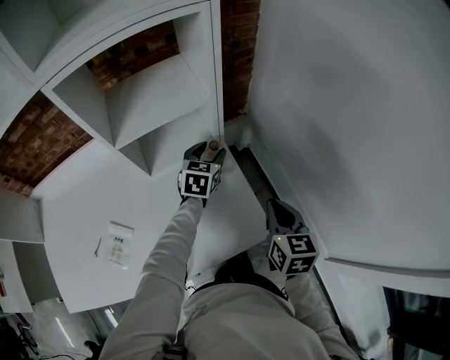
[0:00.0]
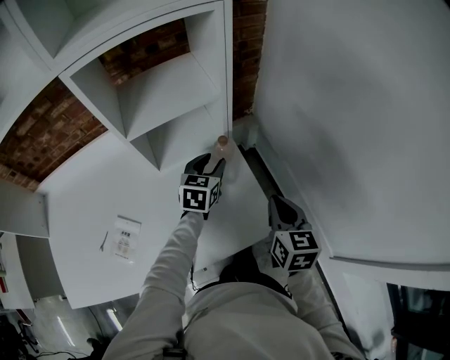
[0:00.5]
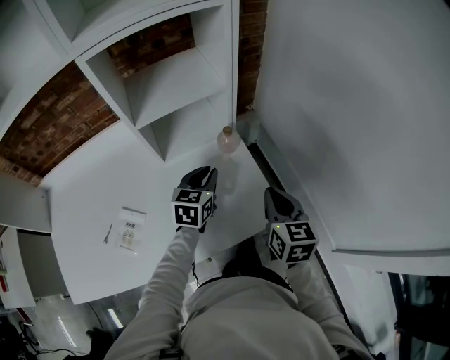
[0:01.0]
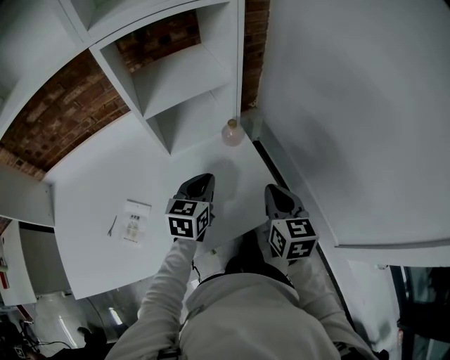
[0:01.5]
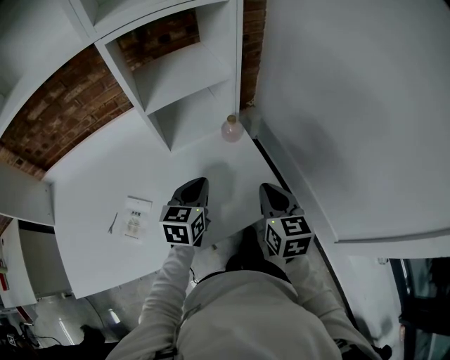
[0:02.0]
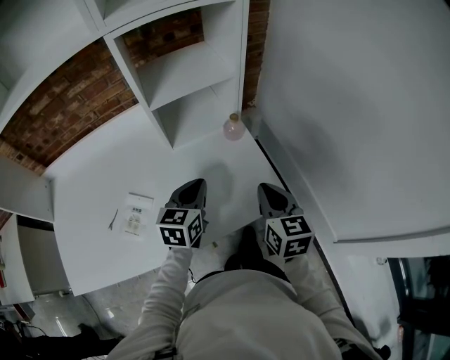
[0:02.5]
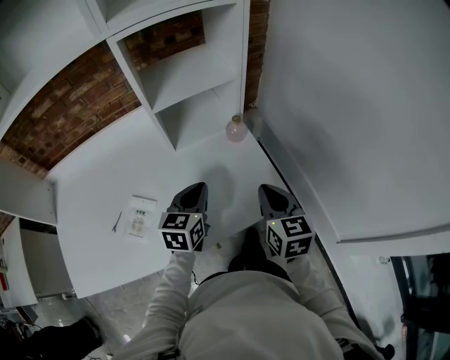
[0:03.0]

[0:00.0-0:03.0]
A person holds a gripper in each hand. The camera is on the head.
0:00.0 to 0:01.5: The left gripper moves backward, some 20 cm, and closes up. Meanwhile the right gripper travels backward and to the left by roughly 10 cm.
0:01.5 to 0:03.0: The left gripper heads backward, covering some 5 cm.

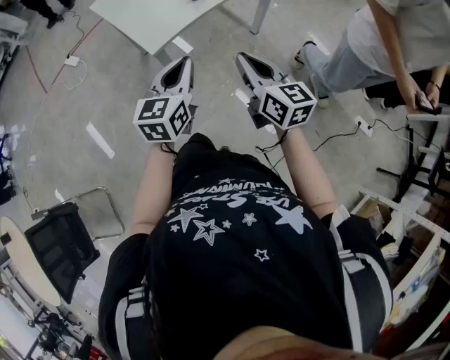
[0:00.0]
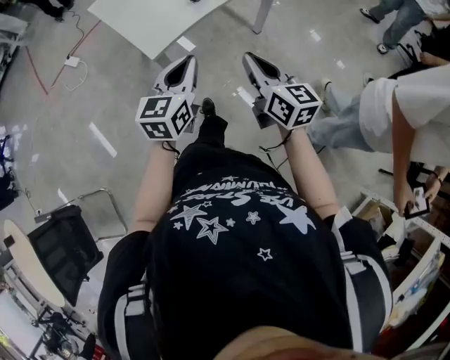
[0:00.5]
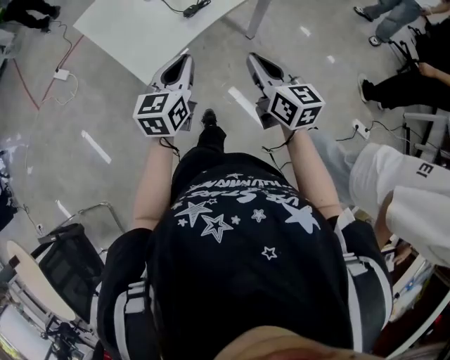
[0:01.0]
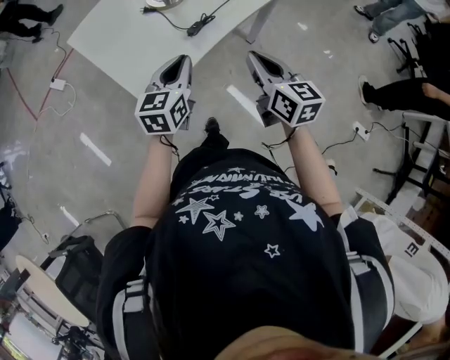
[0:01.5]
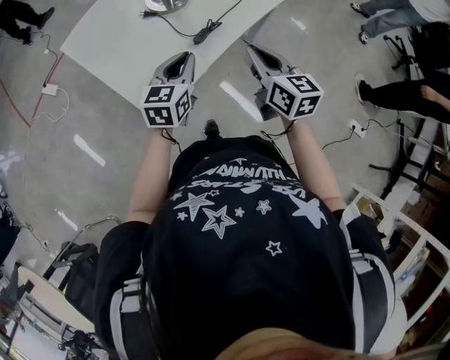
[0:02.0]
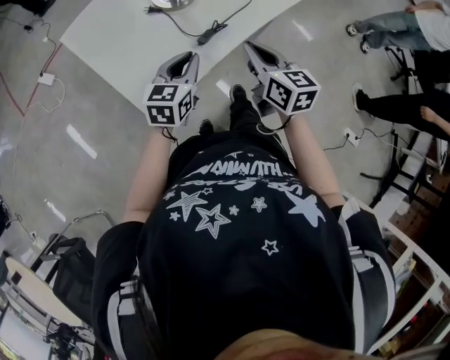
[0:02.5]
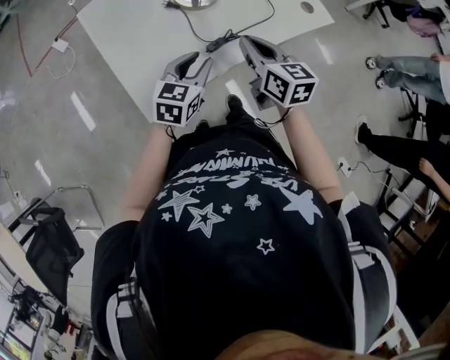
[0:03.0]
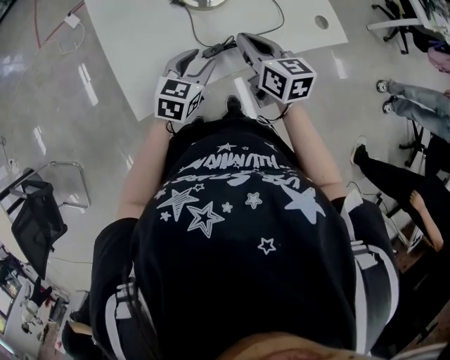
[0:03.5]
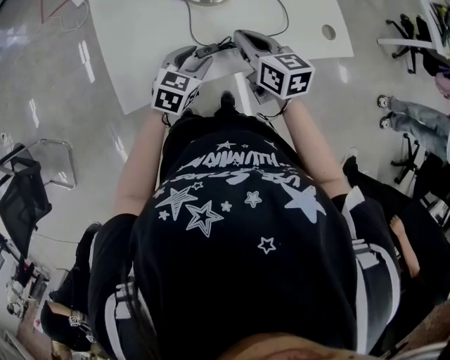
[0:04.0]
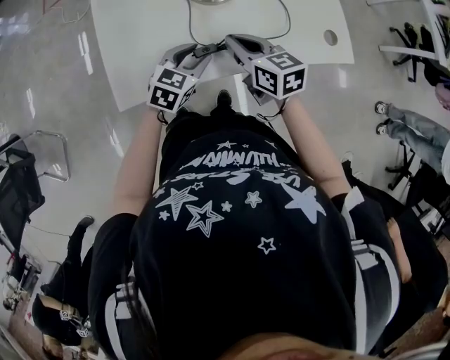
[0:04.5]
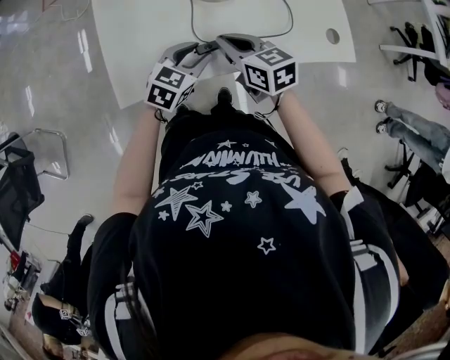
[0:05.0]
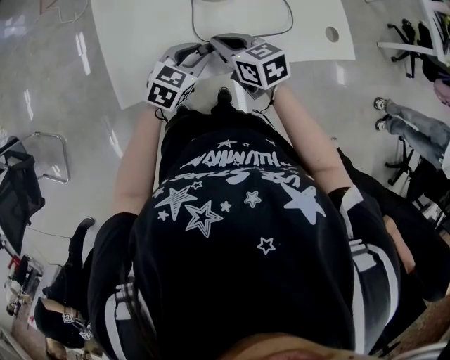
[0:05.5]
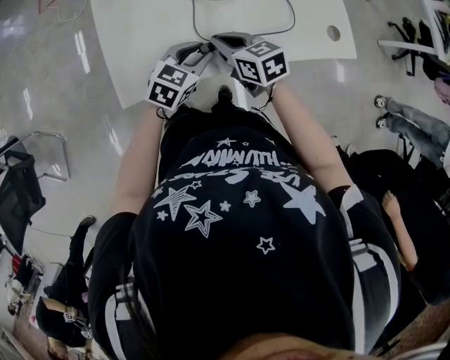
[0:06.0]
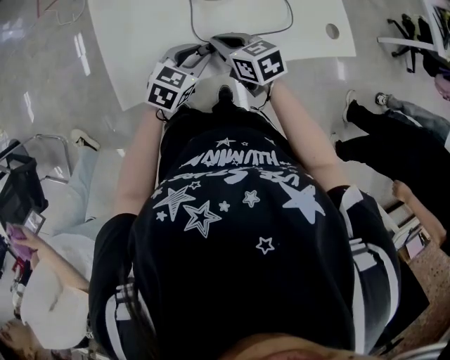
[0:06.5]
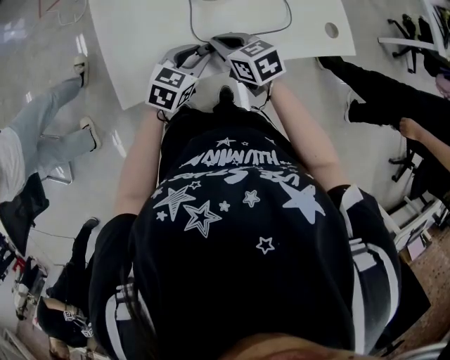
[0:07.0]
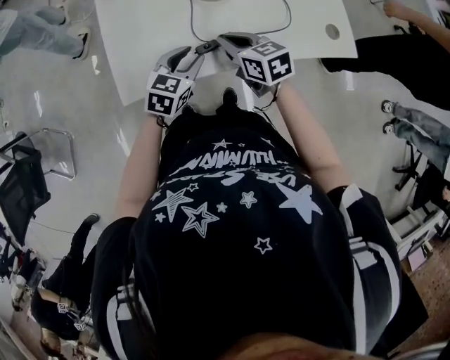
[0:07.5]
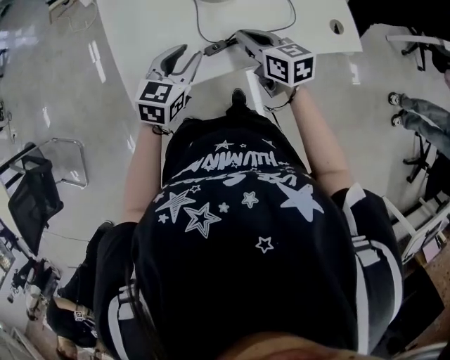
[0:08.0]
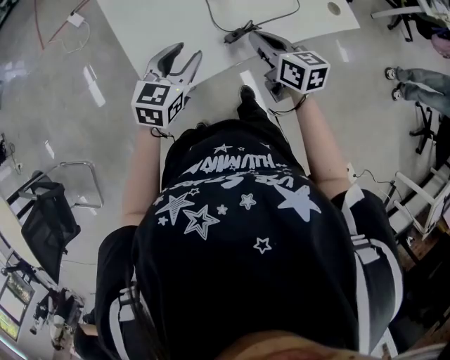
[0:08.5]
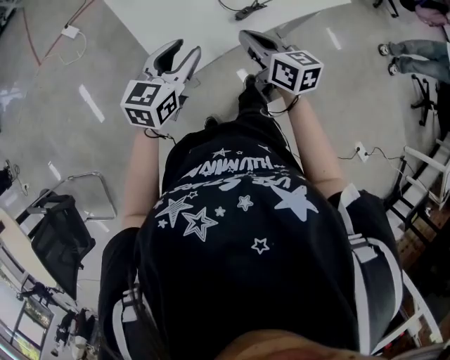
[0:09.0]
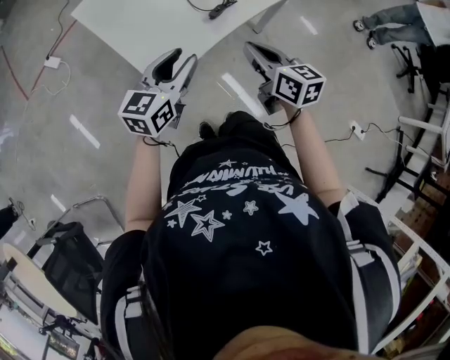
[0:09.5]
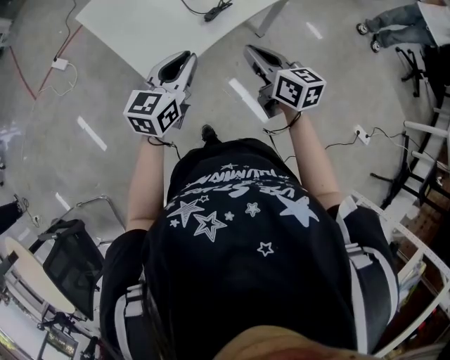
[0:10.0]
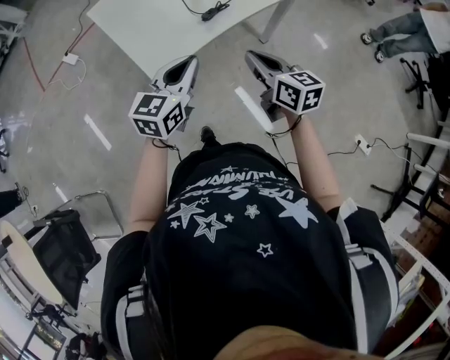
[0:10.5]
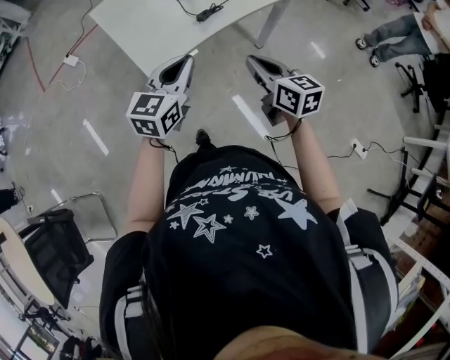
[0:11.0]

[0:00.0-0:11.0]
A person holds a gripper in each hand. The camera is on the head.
0:00.0 to 0:02.0: Both grippers travel together forward, about 30 cm.
0:02.0 to 0:03.5: The right gripper is displaced forward by about 15 cm, and swivels some 30 degrees. Meanwhile the left gripper heads to the right, forward and downward, covering about 10 cm, and opens its fingers.
0:03.5 to 0:05.5: The right gripper goes about 10 cm downward and to the left, and turns by approximately 30 degrees, while the left gripper ends up some 5 cm from where it was.
0:05.5 to 0:07.5: The grippers make only small movements.
0:07.5 to 0:09.0: The left gripper heads to the left, upward and backward, covering some 25 cm, and turns by approximately 20 degrees, while the right gripper goes about 20 cm backward, to the left and upward, and swivels some 40 degrees.
0:09.0 to 0:11.0: The left gripper travels backward, to the right and upward by approximately 15 cm, and closes up, while the right gripper goes approximately 20 cm backward and to the right.

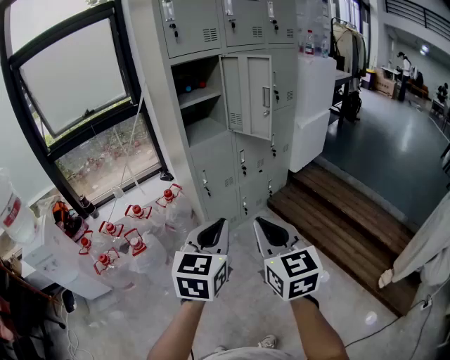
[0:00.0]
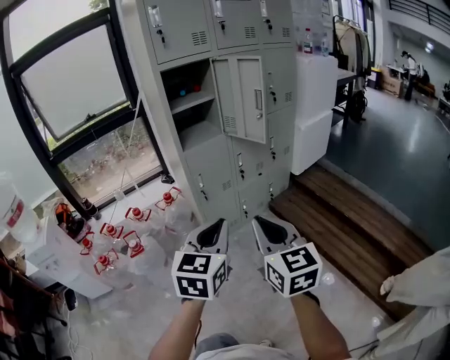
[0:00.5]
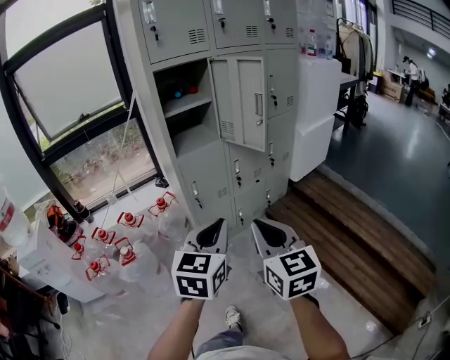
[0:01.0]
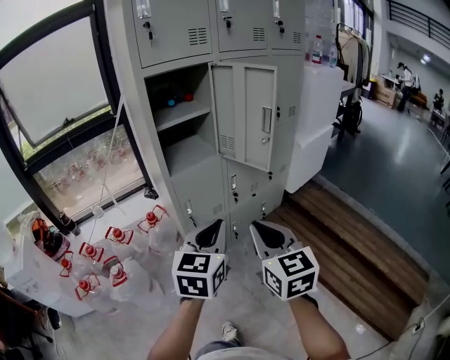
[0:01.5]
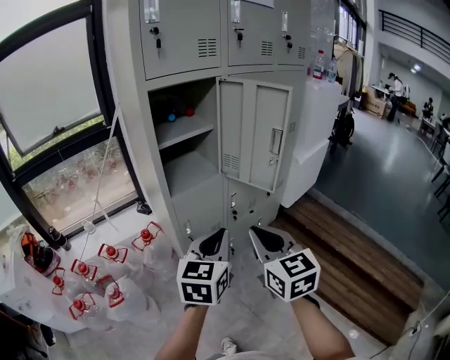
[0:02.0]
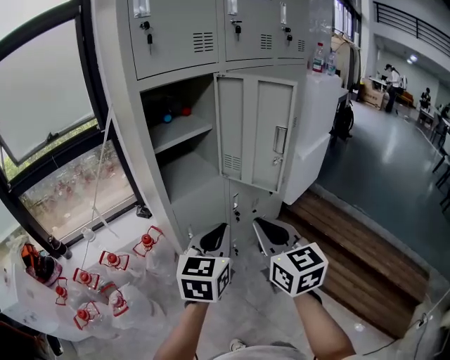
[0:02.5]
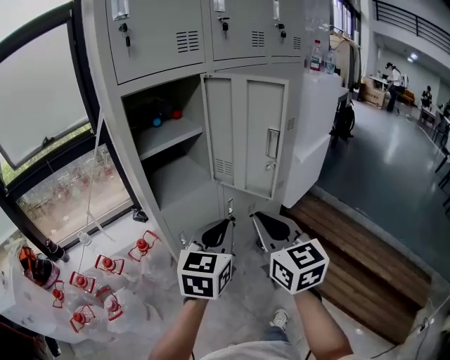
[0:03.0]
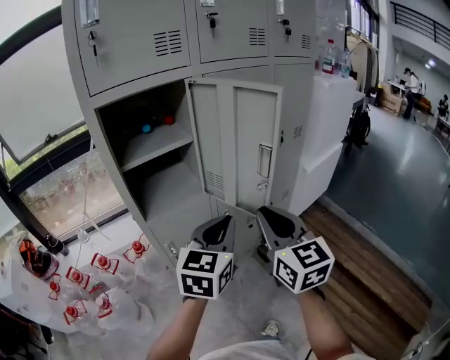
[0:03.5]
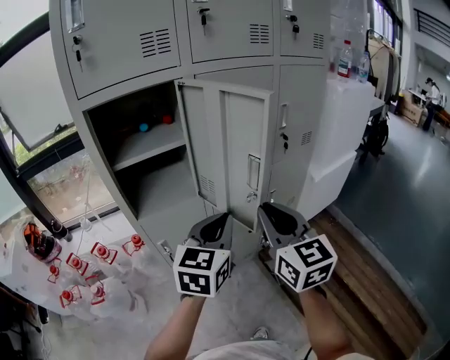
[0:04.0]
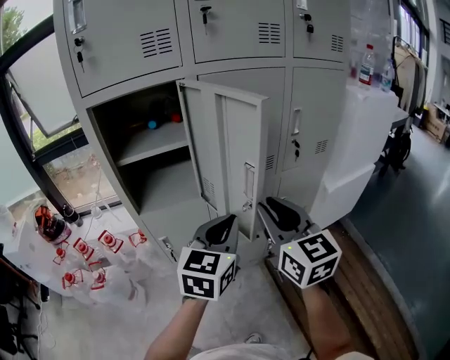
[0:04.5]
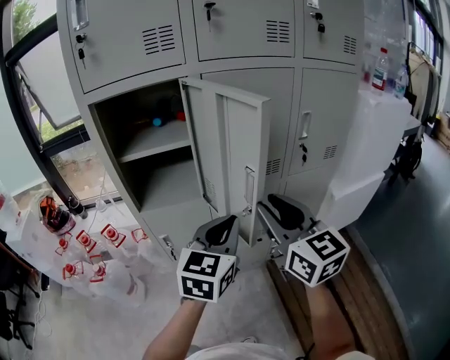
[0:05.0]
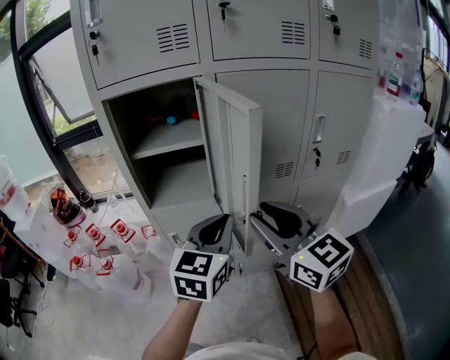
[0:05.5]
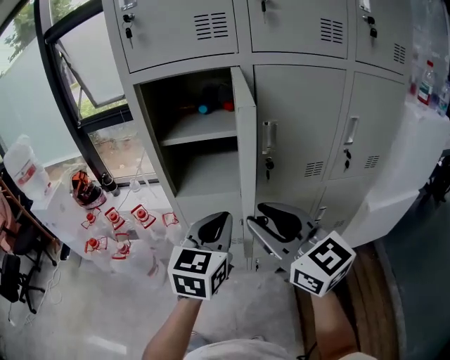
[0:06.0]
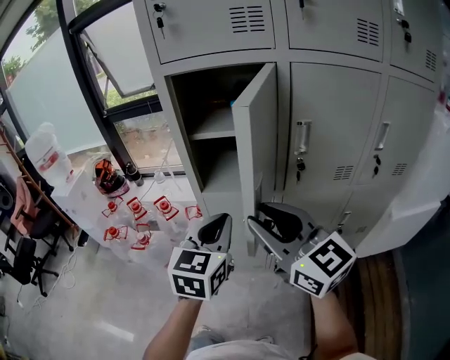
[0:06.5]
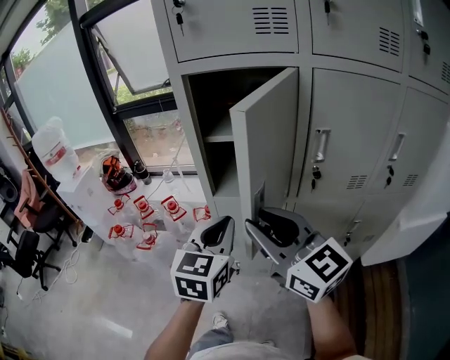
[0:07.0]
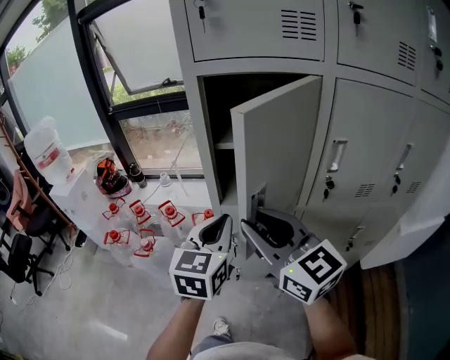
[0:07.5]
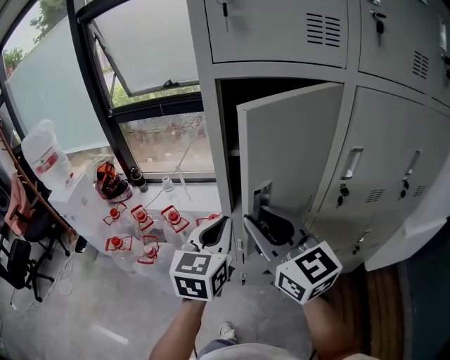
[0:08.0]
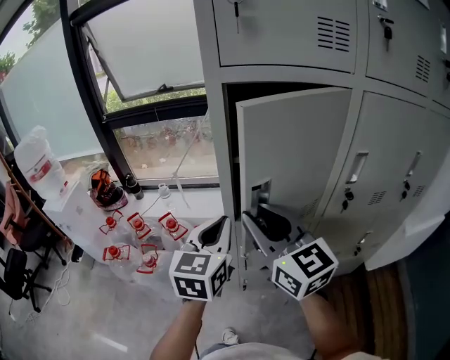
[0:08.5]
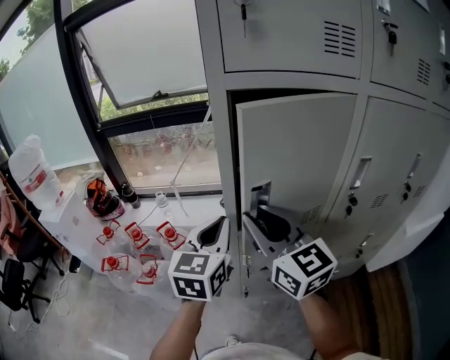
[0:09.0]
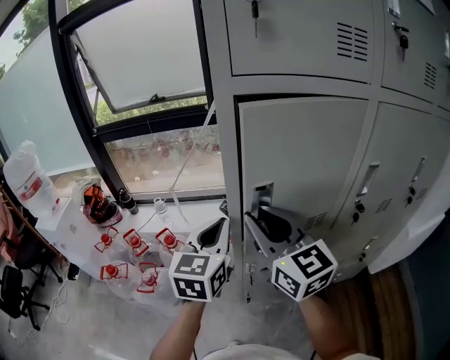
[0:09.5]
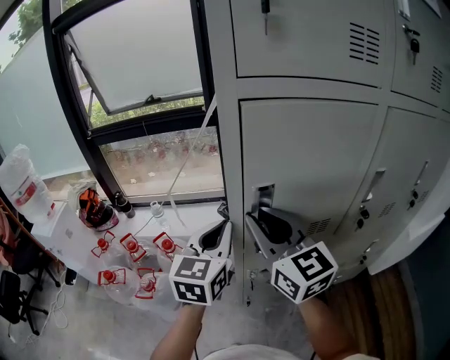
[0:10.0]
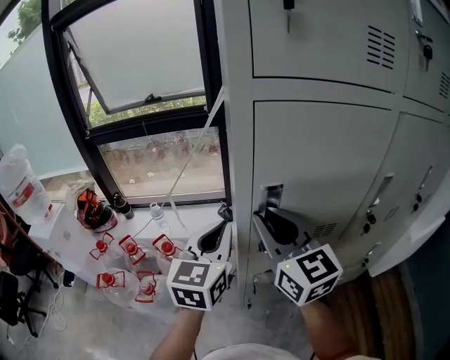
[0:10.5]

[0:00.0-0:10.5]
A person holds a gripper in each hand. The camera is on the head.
0:00.0 to 0:02.0: Both grippers travel together forward, about 30 cm.
0:02.0 to 0:04.0: Both grippers move forward and to the right, about 25 cm.
0:04.0 to 0:06.5: The right gripper ends up about 15 cm from where it was, rotates roughly 50 degrees, and opens up; the left gripper changes place by about 10 cm, and turns by roughly 30 degrees.
0:06.5 to 0:08.5: Both grippers travel together forward and to the left, about 20 cm.
0:08.5 to 0:10.5: Both grippers move forward, about 10 cm.

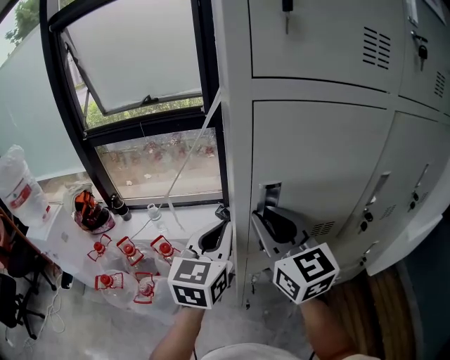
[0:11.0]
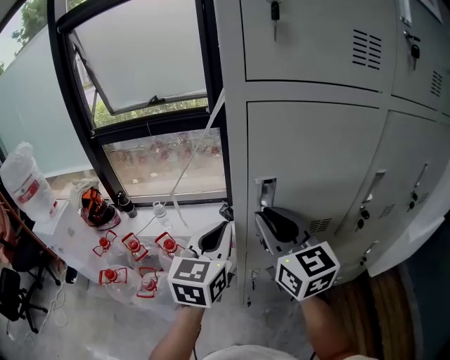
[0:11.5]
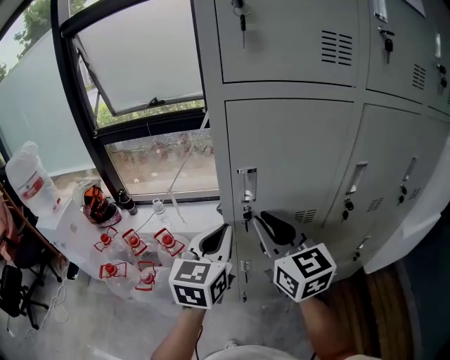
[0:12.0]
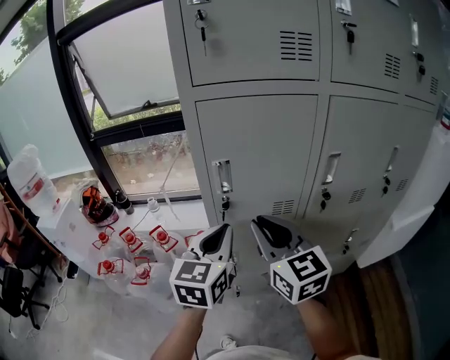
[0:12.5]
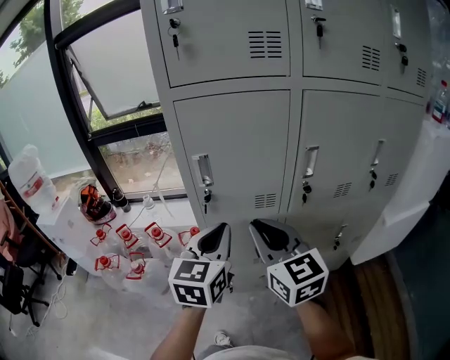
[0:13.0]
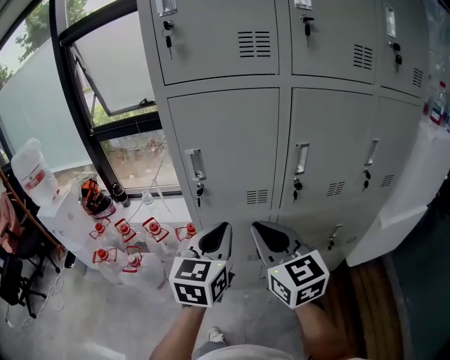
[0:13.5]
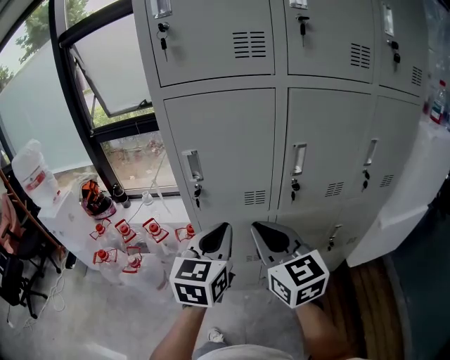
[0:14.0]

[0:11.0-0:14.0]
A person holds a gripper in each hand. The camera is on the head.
0:11.0 to 0:12.5: The two grippers go roughly 15 cm backward and to the right.
0:12.5 to 0:14.0: The grippers both shift to the right and backward by some 10 cm.
